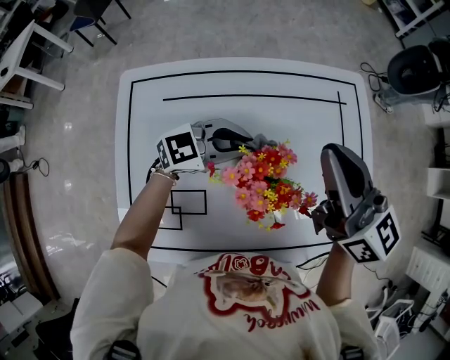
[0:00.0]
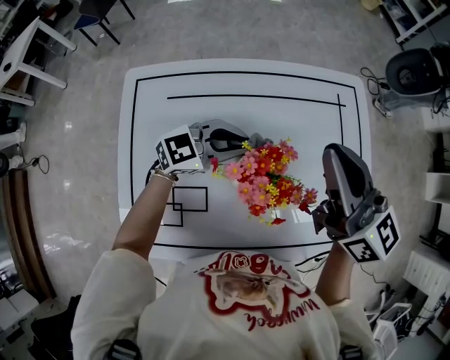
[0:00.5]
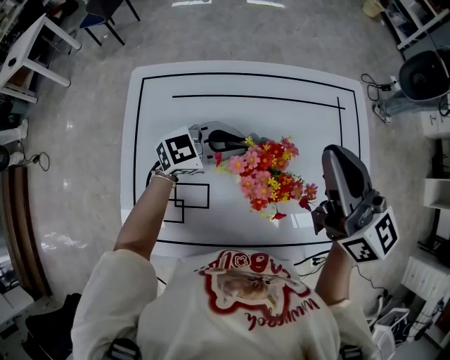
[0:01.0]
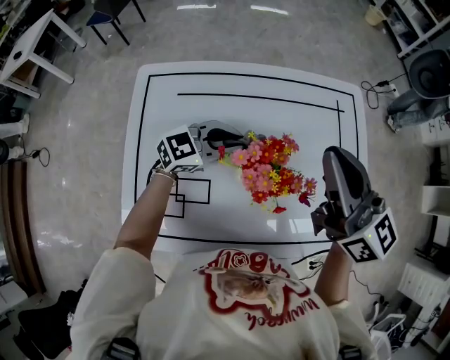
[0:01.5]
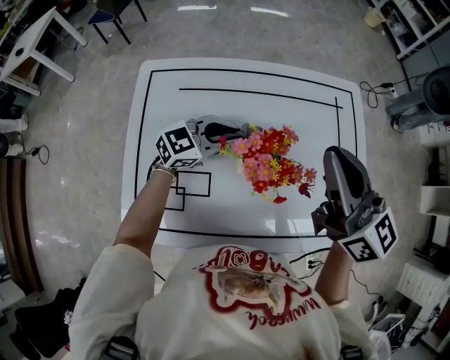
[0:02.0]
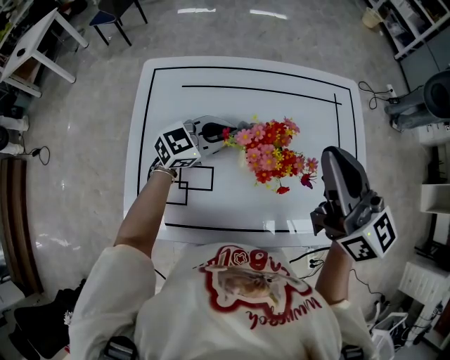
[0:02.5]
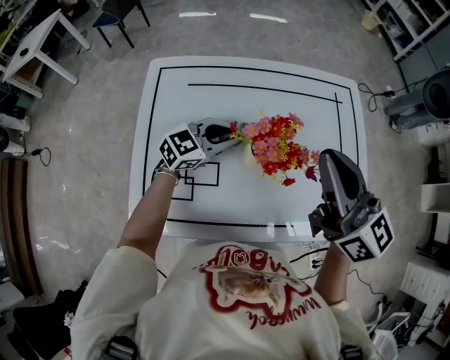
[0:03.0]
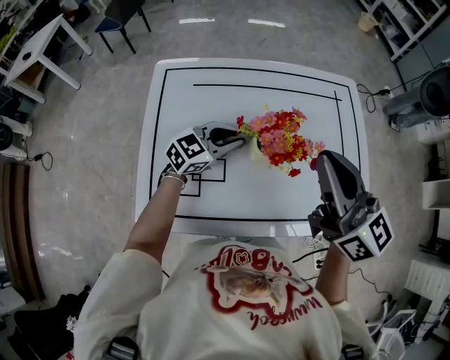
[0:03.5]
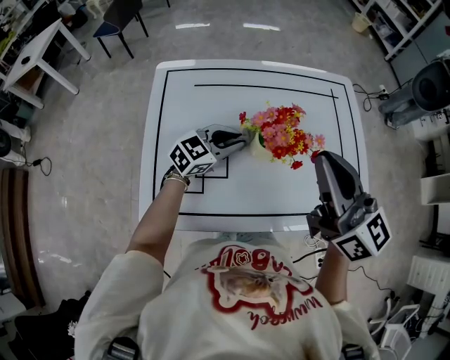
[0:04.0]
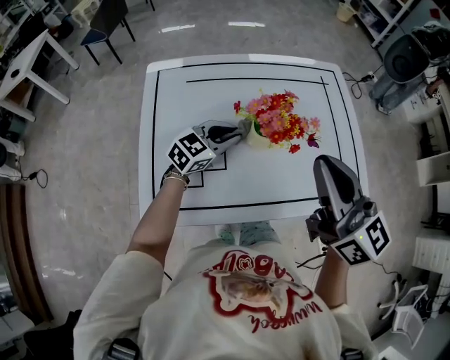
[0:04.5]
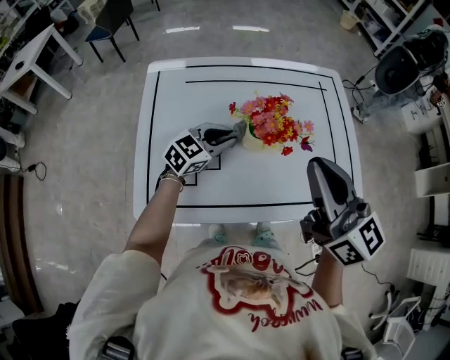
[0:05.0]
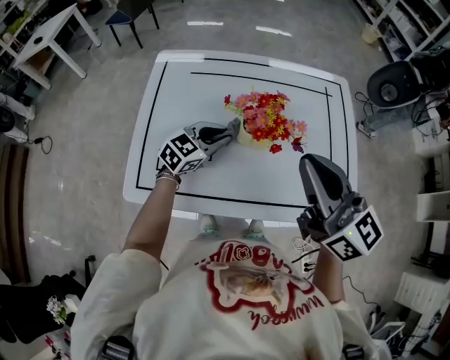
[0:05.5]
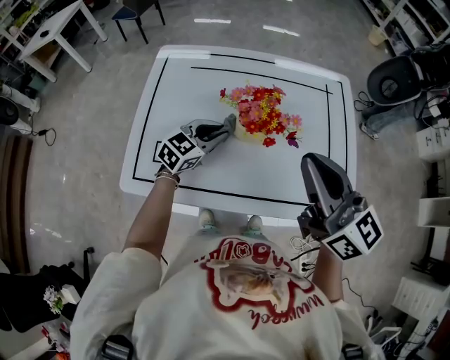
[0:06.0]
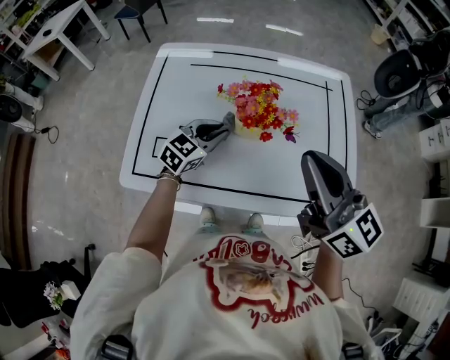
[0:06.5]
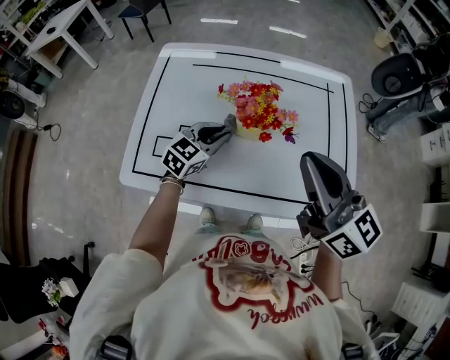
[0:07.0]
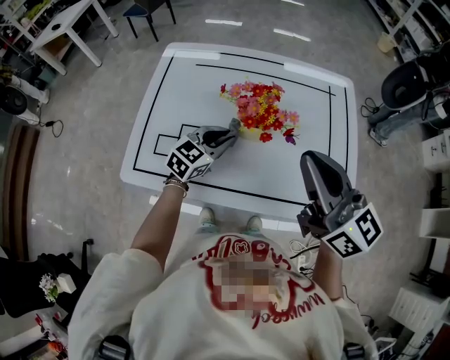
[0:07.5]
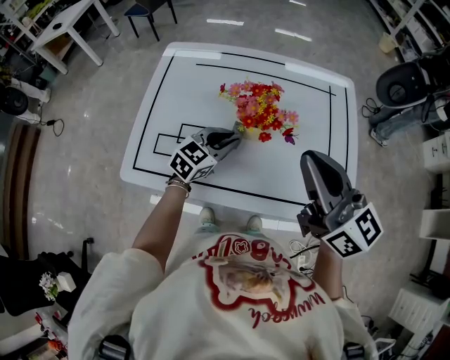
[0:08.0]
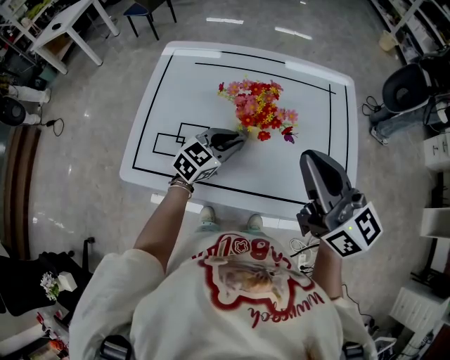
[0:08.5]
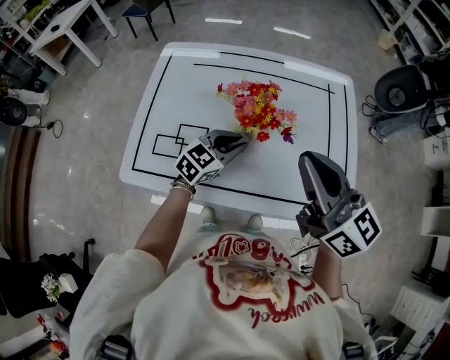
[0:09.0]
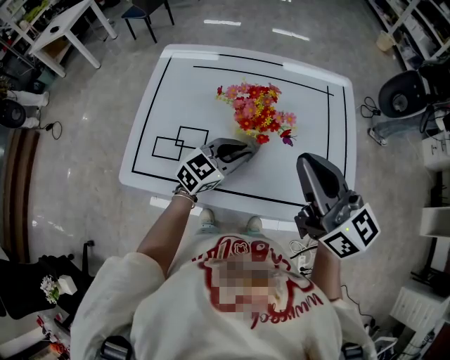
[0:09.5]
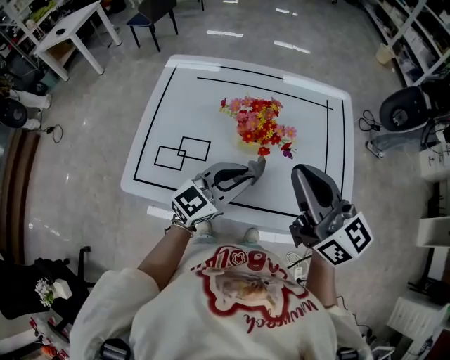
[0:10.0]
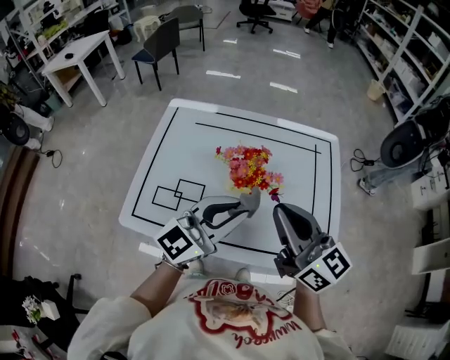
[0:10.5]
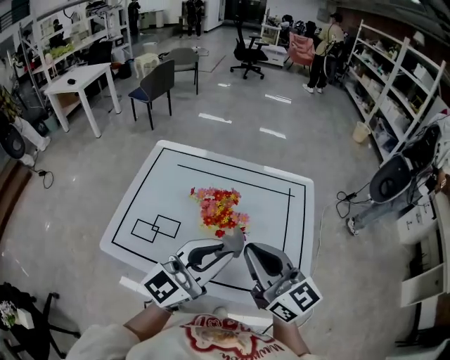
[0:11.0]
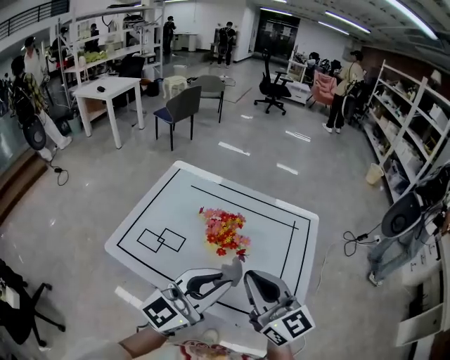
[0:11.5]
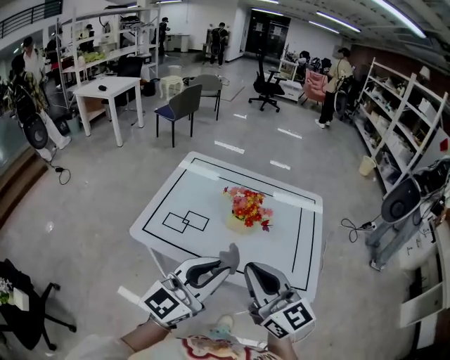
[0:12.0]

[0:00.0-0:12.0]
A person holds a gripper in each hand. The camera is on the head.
0:00.0 to 0:02.0: The right gripper moves backward, about 5 cm.
0:02.0 to 0:04.0: The right gripper travels backward by some 10 cm. Meanwhile the left gripper is displaced backward by some 5 cm.
0:04.0 to 0:06.0: The right gripper goes about 5 cm to the right.
0:06.0 to 0:08.0: The grippers move only a little.
0:08.0 to 0:10.0: The left gripper shifts approximately 10 cm upward and backward, and changes its angle by some 20 degrees.
0:10.0 to 0:12.0: The left gripper travels upward and backward by roughly 25 cm, and turns by some 30 degrees, while the right gripper moves backward, some 15 cm.

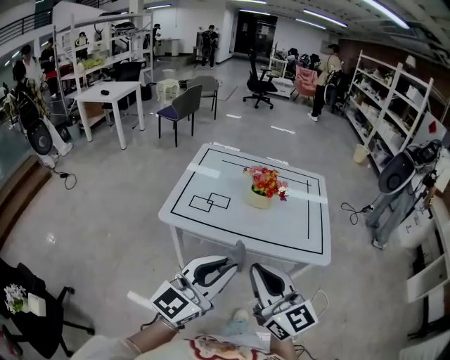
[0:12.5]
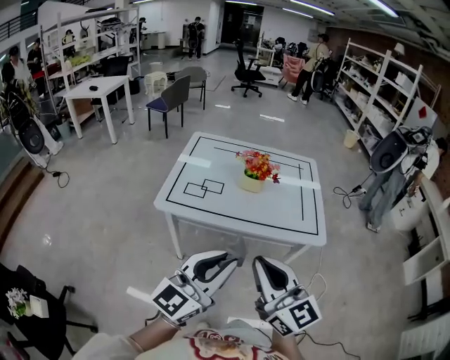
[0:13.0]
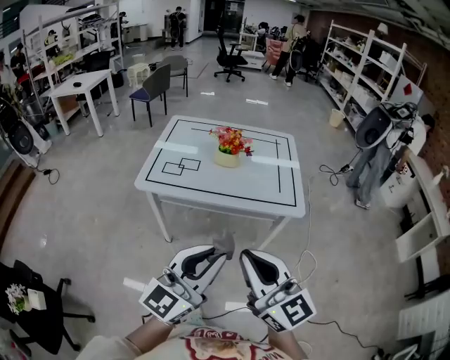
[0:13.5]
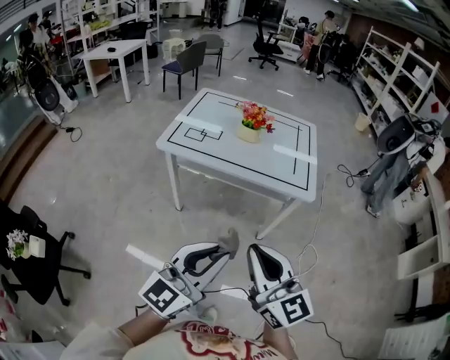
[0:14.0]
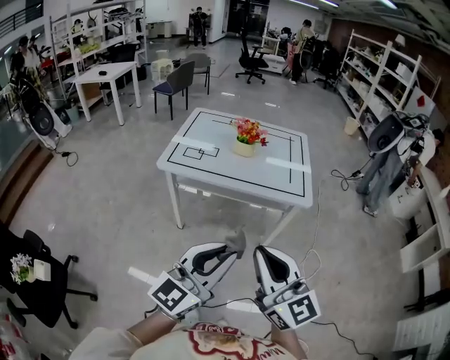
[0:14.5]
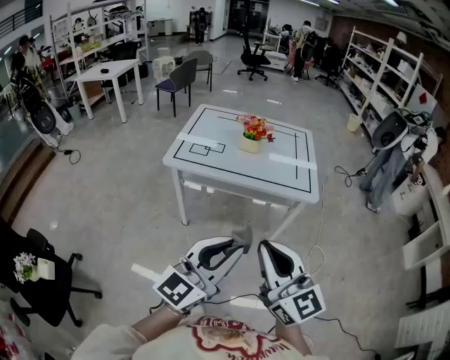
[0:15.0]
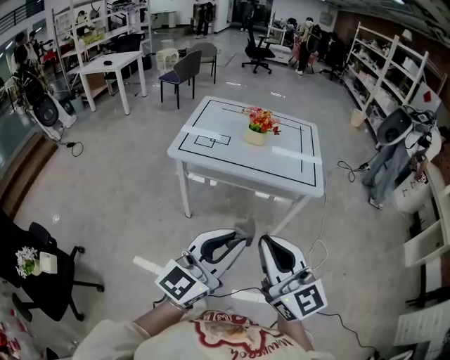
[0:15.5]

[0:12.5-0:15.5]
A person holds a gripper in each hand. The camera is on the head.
0:12.5 to 0:14.0: The grippers both shift backward and to the right by roughly 20 cm.
0:14.0 to 0:15.5: The left gripper changes place by roughly 5 cm; the right gripper heads to the left, covering roughly 5 cm.

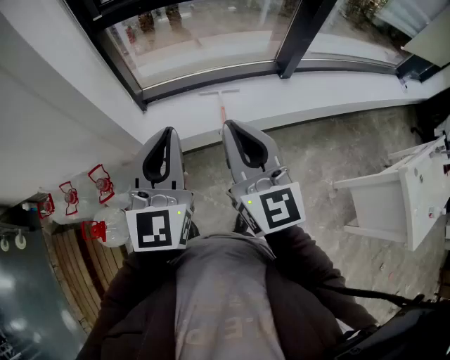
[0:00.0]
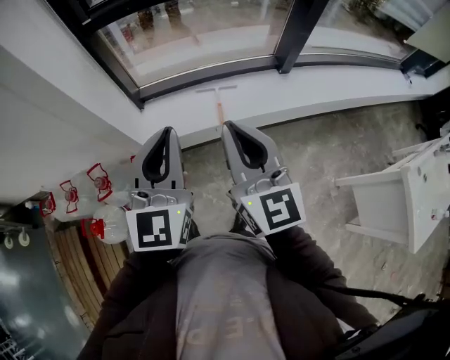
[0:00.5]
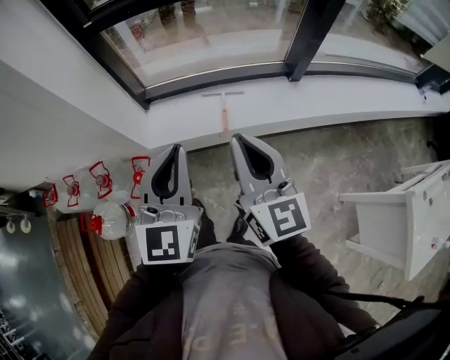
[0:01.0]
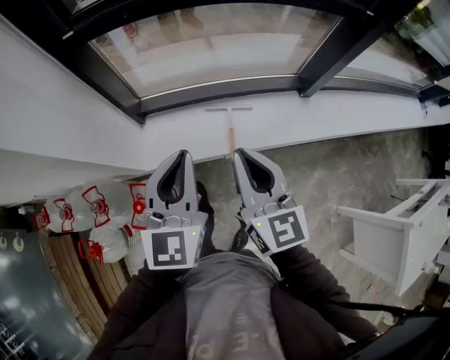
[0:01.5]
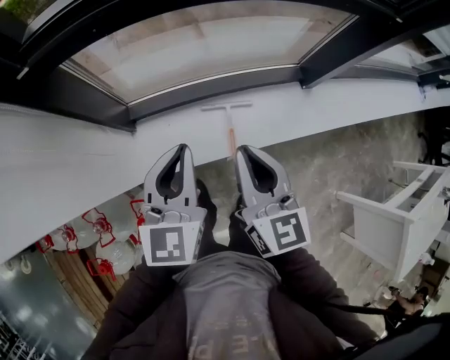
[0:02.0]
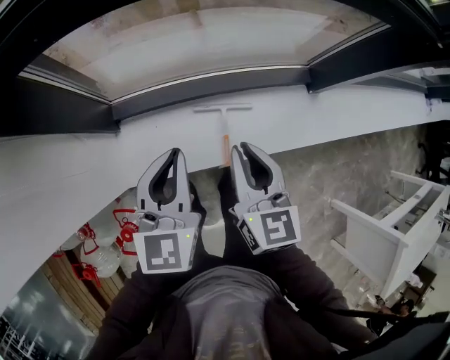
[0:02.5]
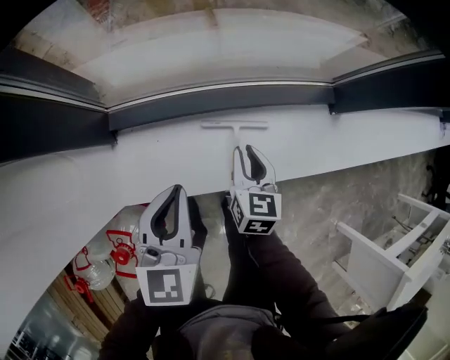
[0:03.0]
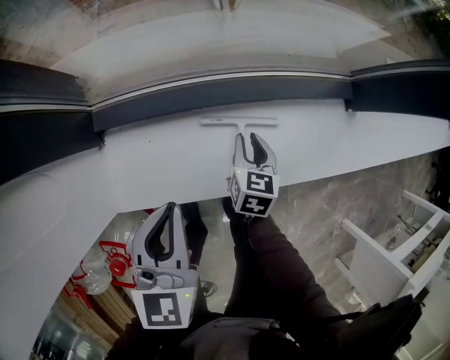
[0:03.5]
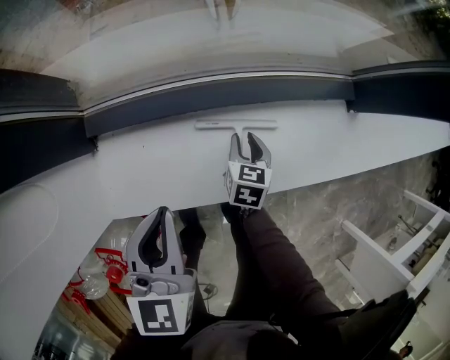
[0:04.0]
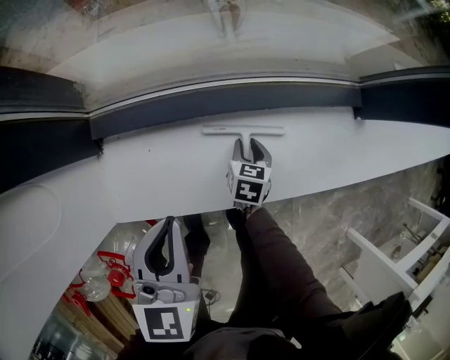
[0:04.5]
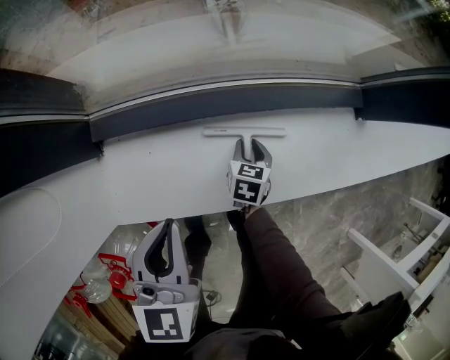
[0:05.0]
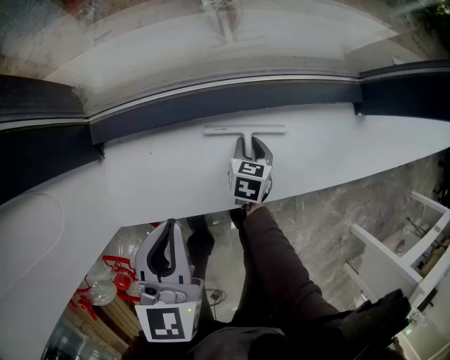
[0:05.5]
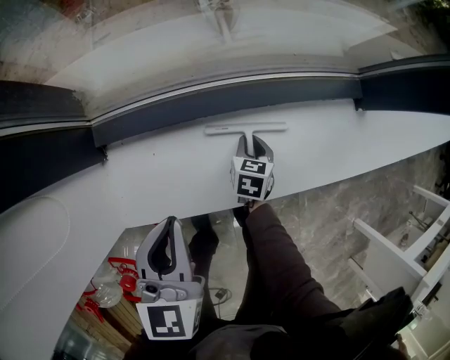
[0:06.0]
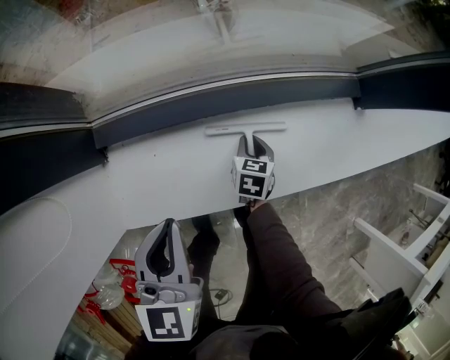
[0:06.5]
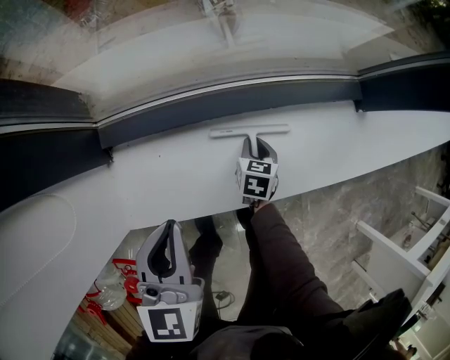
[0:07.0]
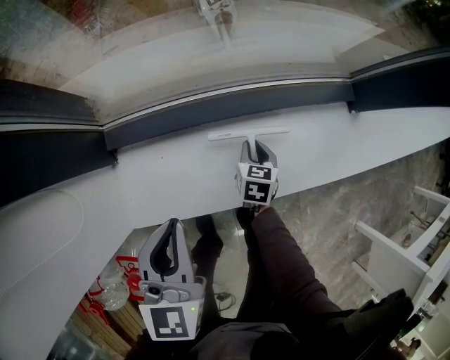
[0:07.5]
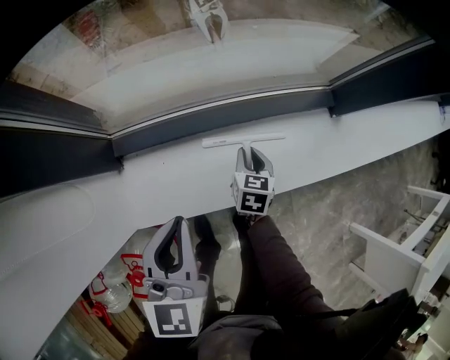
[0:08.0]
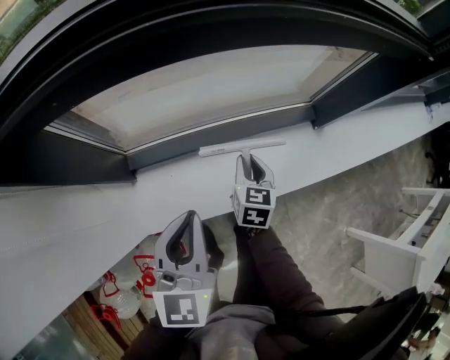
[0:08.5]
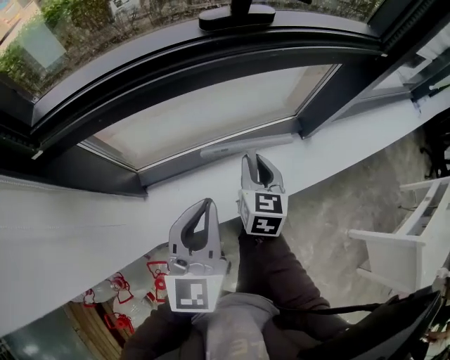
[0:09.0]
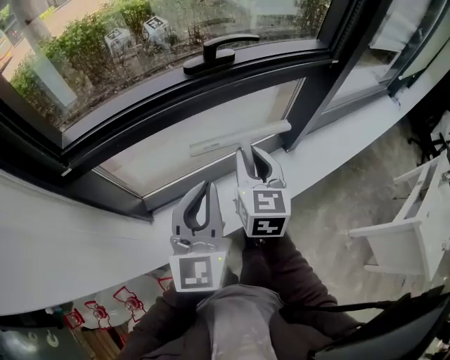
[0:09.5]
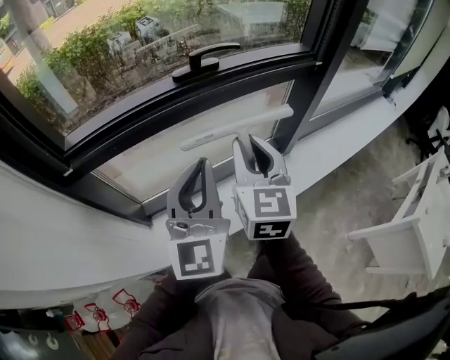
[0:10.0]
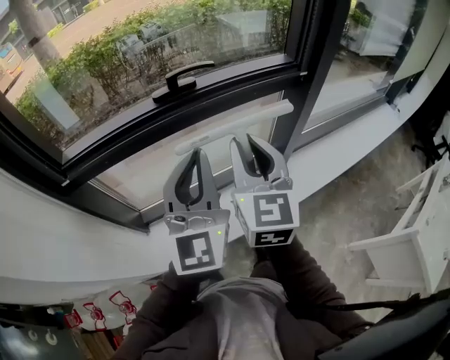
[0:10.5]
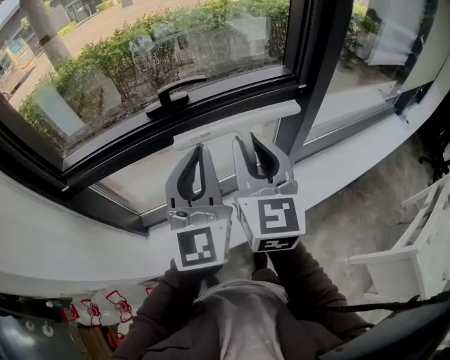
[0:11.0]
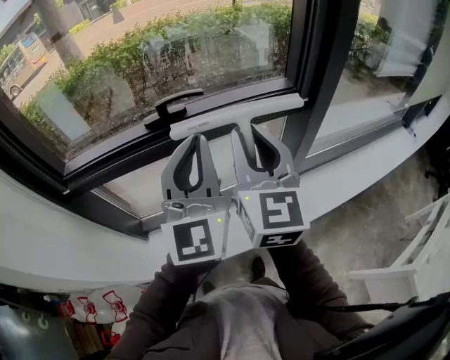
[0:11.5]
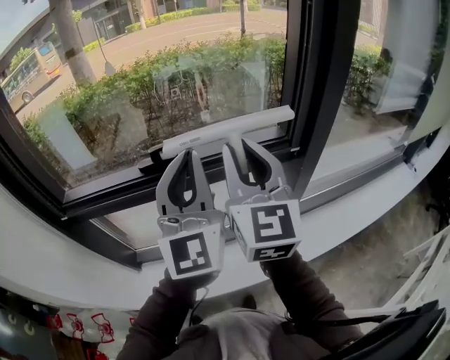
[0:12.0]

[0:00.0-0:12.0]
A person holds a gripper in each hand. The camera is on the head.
0:00.0 to 0:02.0: The grippers both shift forward and downward by roughly 35 cm.
0:02.0 to 0:04.0: The right gripper is displaced downward and forward by roughly 50 cm, tips its fingers downward by roughly 40 degrees, and opens up. The left gripper moves downward, approximately 30 cm.
0:04.0 to 0:06.0: The right gripper heads downward, covering about 5 cm.
0:06.0 to 0:08.0: Both grippers move upward, some 15 cm.
0:08.0 to 0:10.0: The left gripper goes roughly 35 cm upward, and tilts its fingers approximately 30 degrees upward; the right gripper travels upward by approximately 60 cm, and tilts its fingers roughly 40 degrees upward.
0:10.0 to 0:12.0: The left gripper is displaced to the right, upward and forward by about 25 cm, and rotates about 20 degrees. Meanwhile the right gripper travels upward, to the right and forward by roughly 25 cm, and rotates about 20 degrees.
